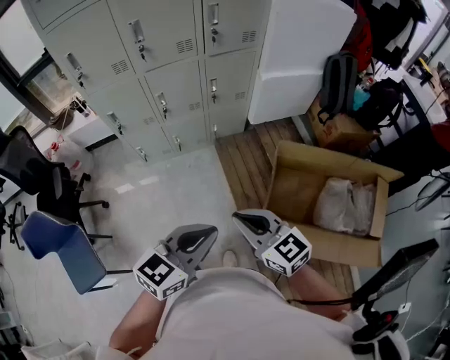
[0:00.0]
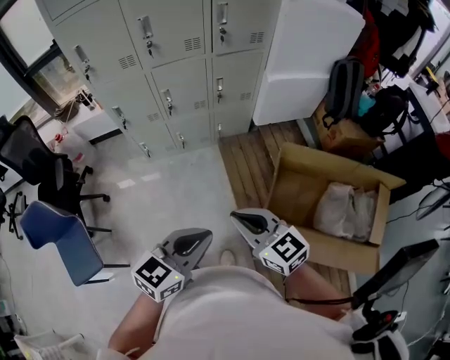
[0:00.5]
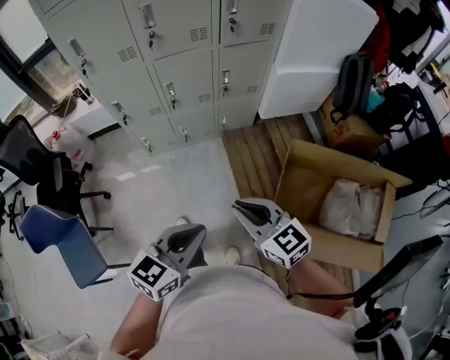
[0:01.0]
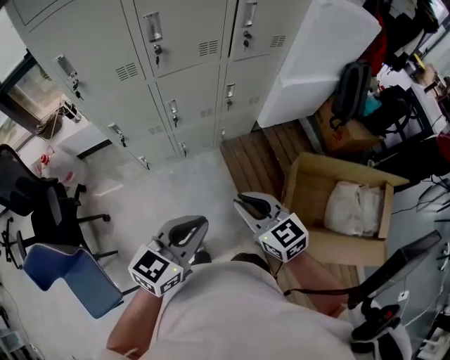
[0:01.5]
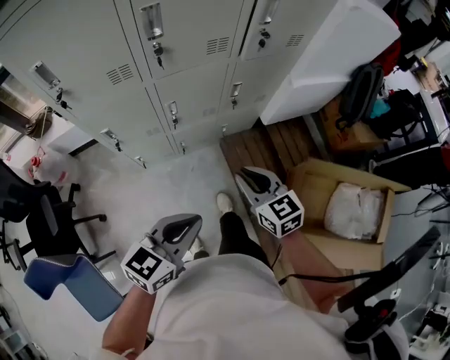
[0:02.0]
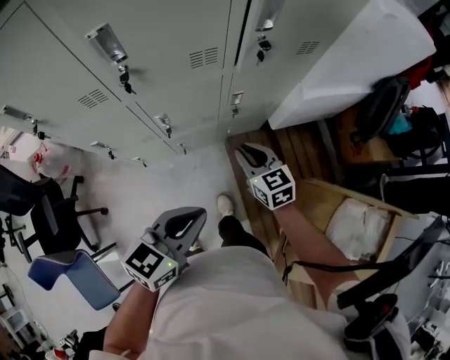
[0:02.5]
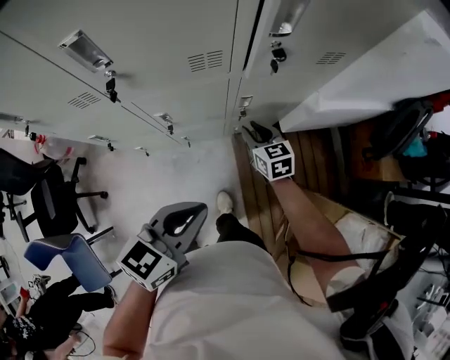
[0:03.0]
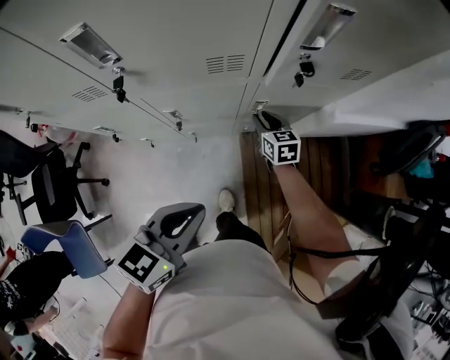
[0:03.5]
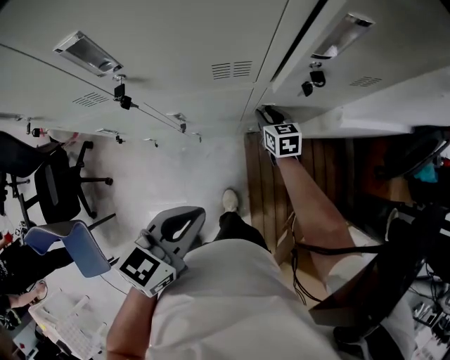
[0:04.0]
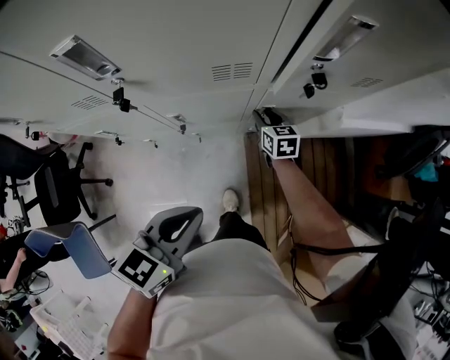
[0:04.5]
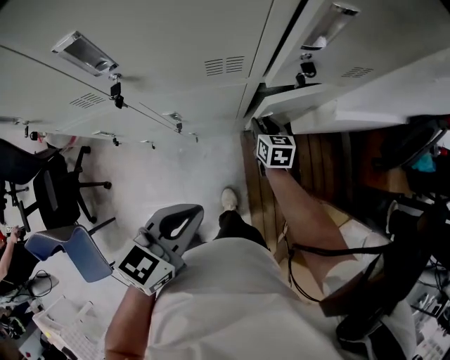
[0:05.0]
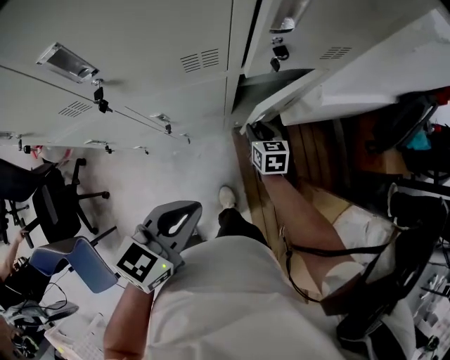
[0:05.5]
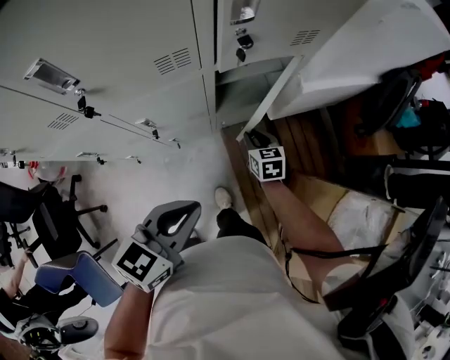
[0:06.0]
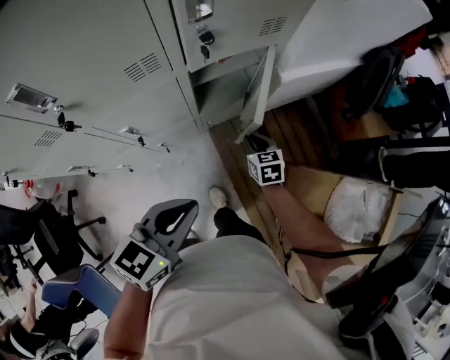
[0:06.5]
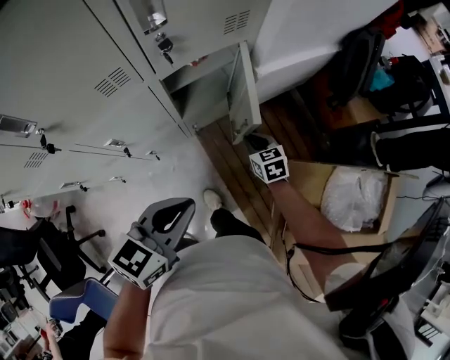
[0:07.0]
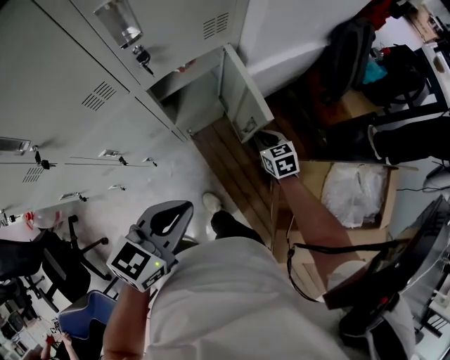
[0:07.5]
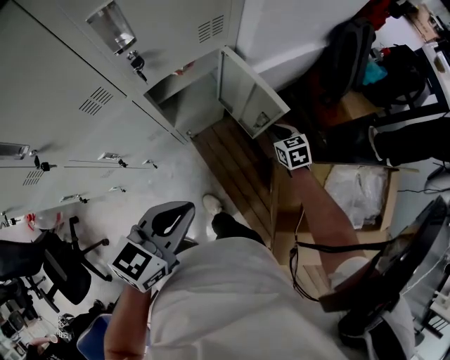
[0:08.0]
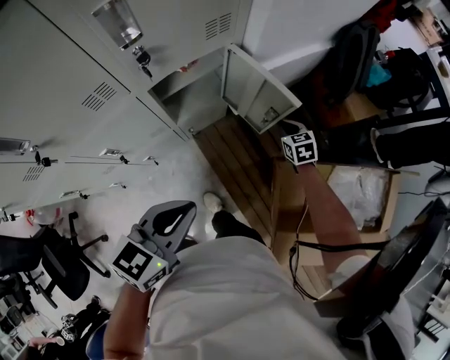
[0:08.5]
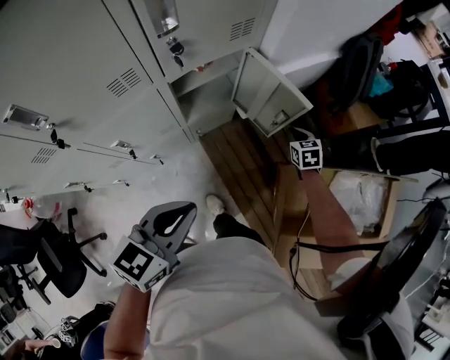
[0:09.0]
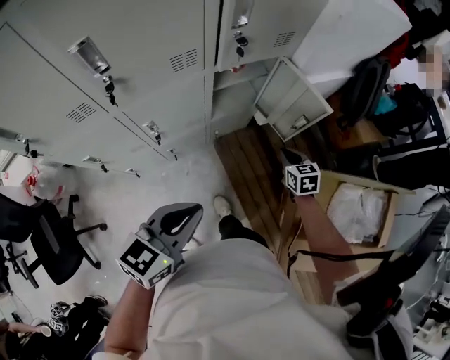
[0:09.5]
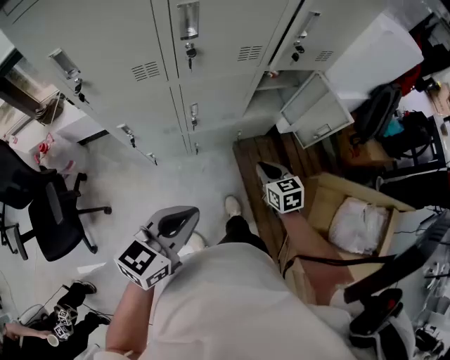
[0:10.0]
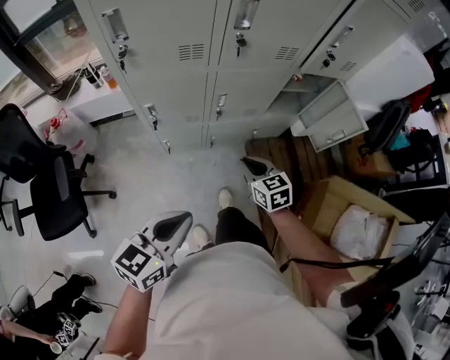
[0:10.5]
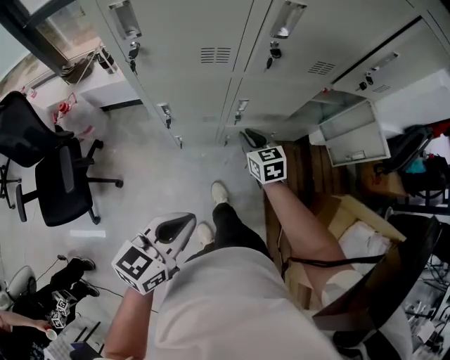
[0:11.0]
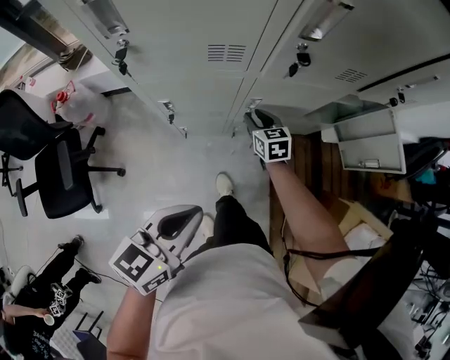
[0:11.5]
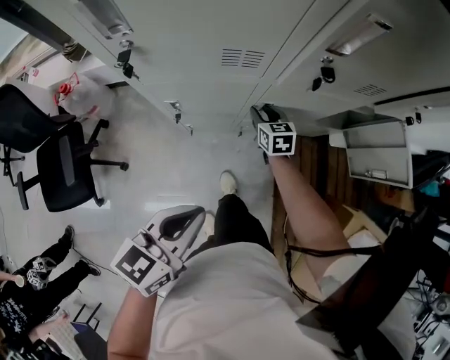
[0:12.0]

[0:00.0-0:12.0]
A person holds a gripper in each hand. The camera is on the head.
0:00.0 to 0:02.0: The two grippers go roughly 35 cm forward and to the left.
0:02.0 to 0:04.0: The left gripper heads forward, covering about 25 cm. Meanwhile the right gripper travels forward and downward by approximately 50 cm.
0:04.0 to 0:06.0: The right gripper moves backward and to the right, roughly 15 cm.
0:06.0 to 0:08.0: The left gripper is displaced to the right by approximately 10 cm. The right gripper is displaced to the right by roughly 25 cm.
0:08.0 to 0:10.0: The grippers both shift backward and to the left by roughly 35 cm.
0:10.0 to 0:12.0: The left gripper heads to the left and forward, covering some 15 cm, and swivels roughly 20 degrees. The right gripper goes some 35 cm to the left and forward, and opens up.

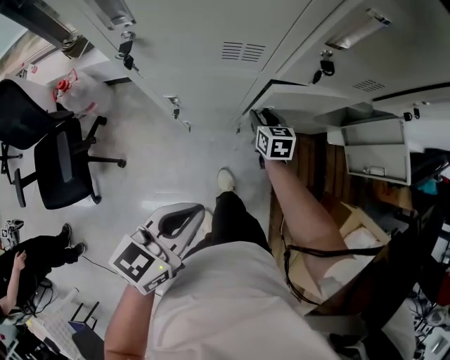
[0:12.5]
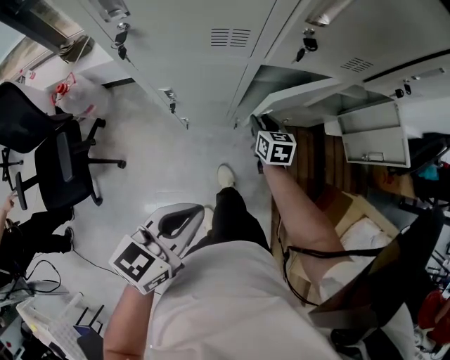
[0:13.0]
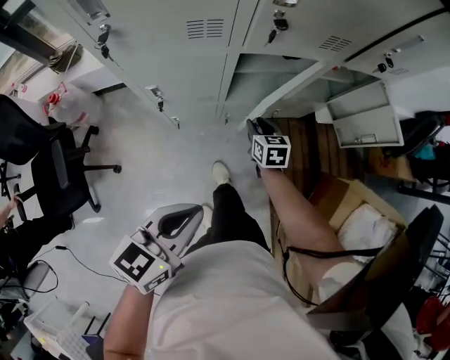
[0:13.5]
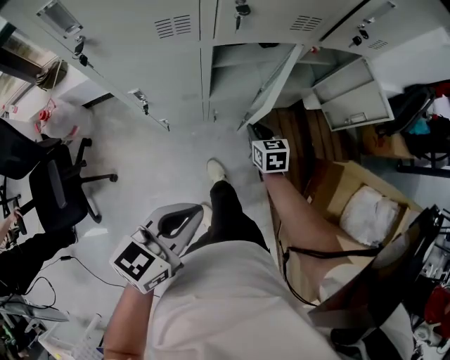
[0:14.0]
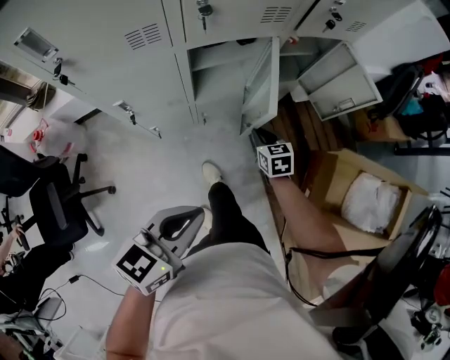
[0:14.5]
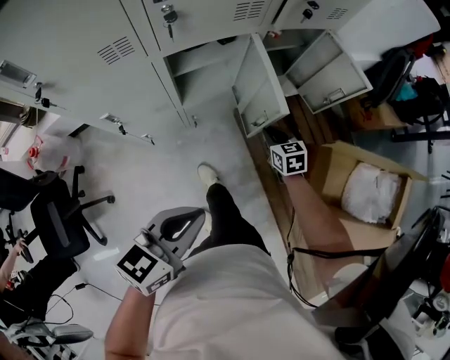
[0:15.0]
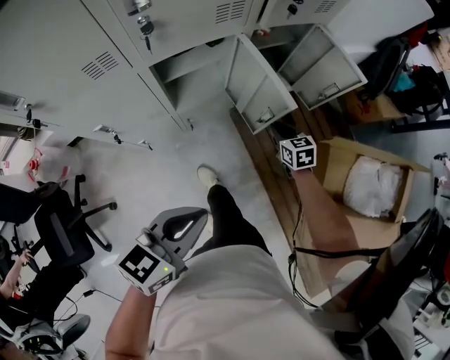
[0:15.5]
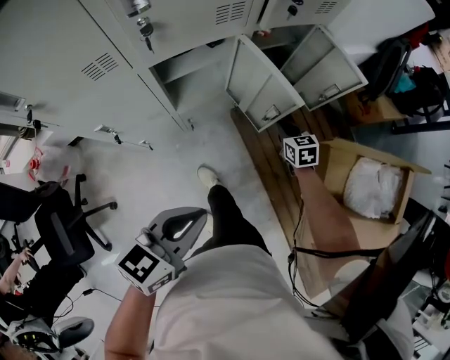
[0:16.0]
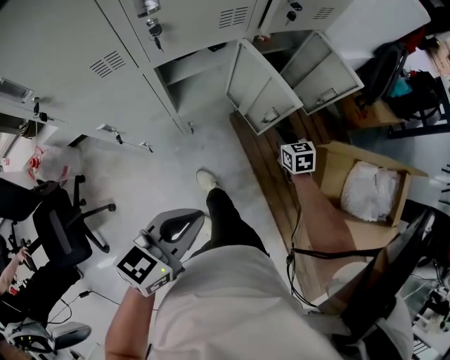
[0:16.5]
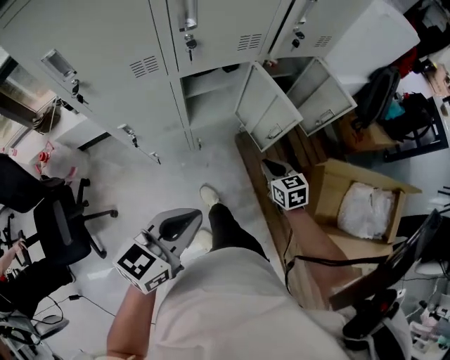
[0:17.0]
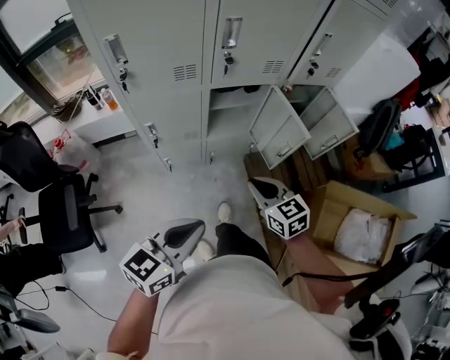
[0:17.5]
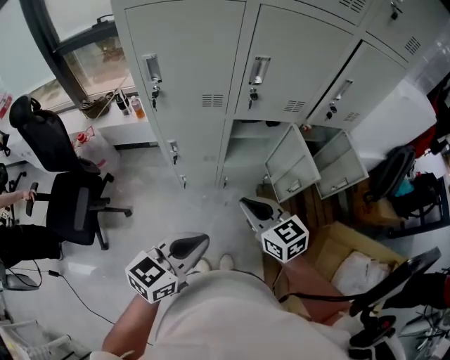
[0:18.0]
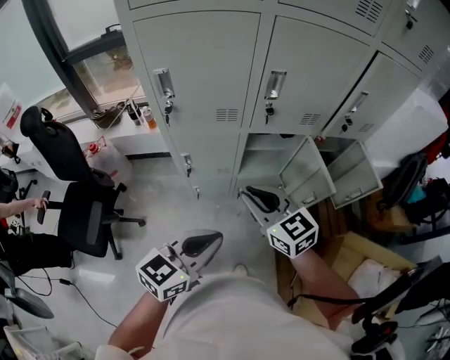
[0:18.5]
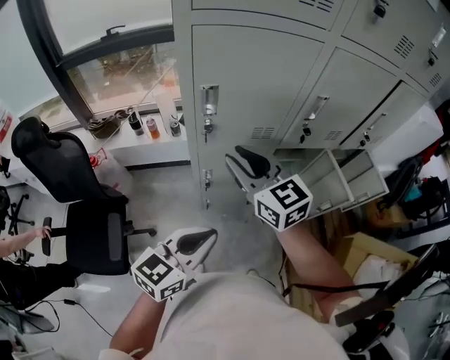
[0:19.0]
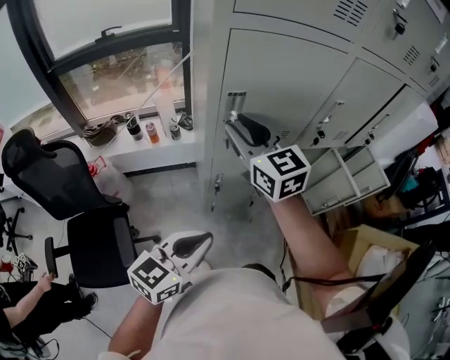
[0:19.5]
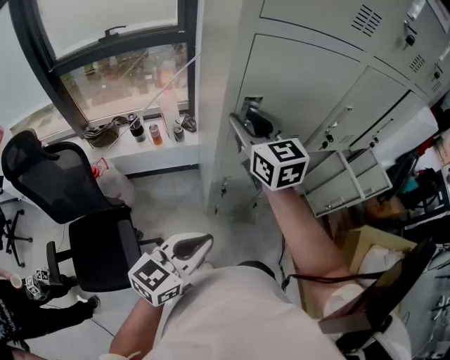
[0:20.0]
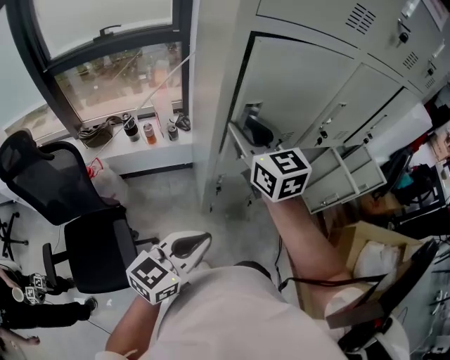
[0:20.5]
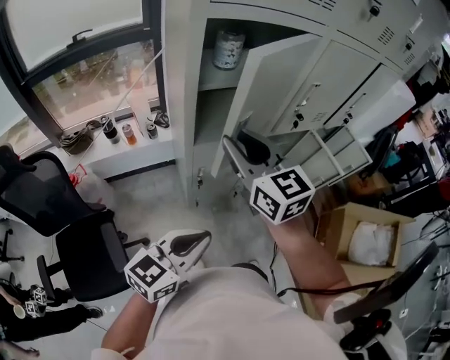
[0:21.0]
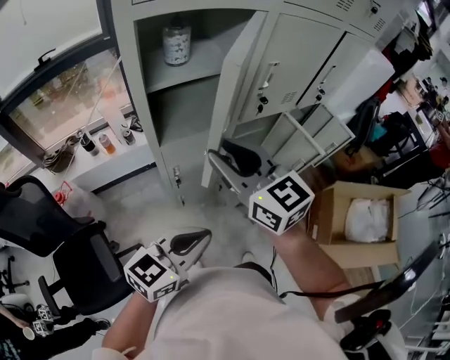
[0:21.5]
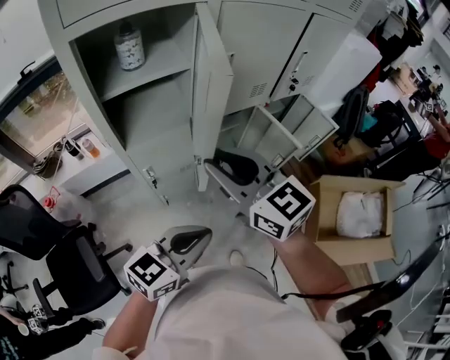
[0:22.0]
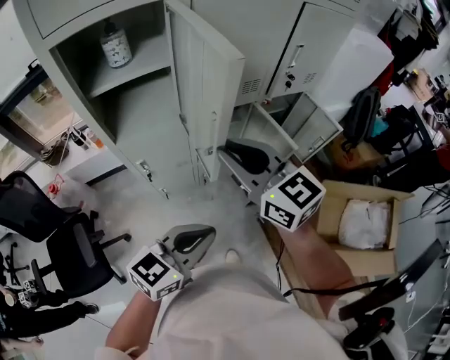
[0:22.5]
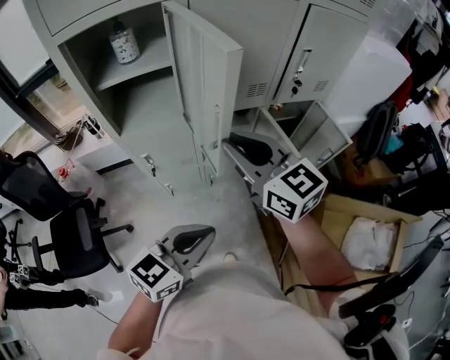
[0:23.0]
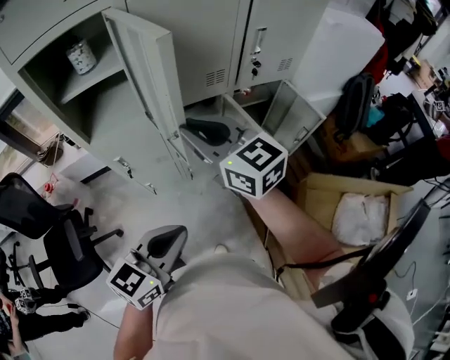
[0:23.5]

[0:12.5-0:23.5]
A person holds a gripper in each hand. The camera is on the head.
0:12.5 to 0:14.5: The right gripper goes about 25 cm to the right and backward. Meanwhile the left gripper is displaced to the right and backward by some 15 cm.
0:14.5 to 0:16.0: The left gripper ends up about 5 cm from where it was. Meanwhile the right gripper heads to the right and forward, covering about 15 cm.
0:16.0 to 0:18.0: The left gripper changes place by some 15 cm, and changes its angle by approximately 20 degrees. Meanwhile the right gripper moves approximately 40 cm, and turns by roughly 40 degrees.
0:18.0 to 0:20.0: The left gripper shifts roughly 30 cm to the left. The right gripper heads to the left, forward and upward, covering roughly 50 cm, swivels some 30 degrees, and opens.
0:20.0 to 0:21.5: The left gripper goes about 10 cm to the right. The right gripper goes approximately 20 cm to the right and backward.
0:21.5 to 0:23.5: Both grippers move to the right, approximately 25 cm.

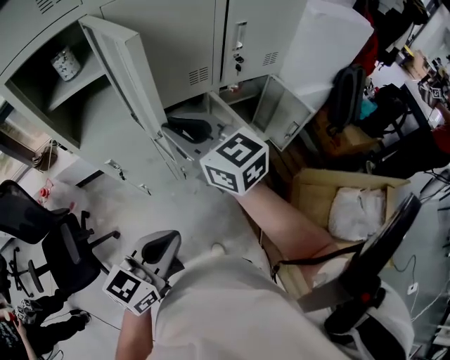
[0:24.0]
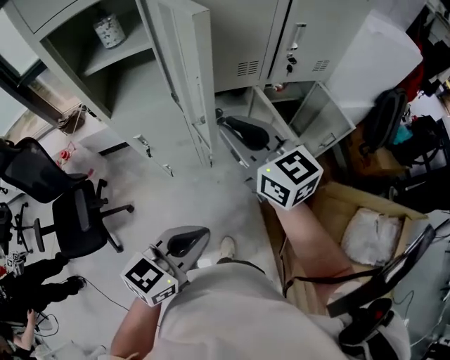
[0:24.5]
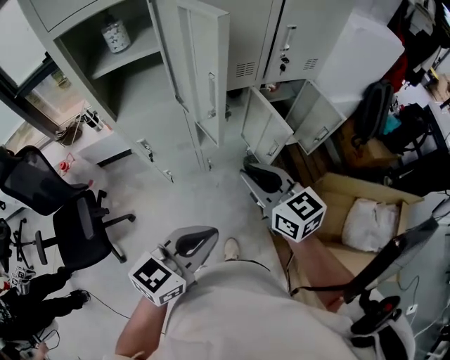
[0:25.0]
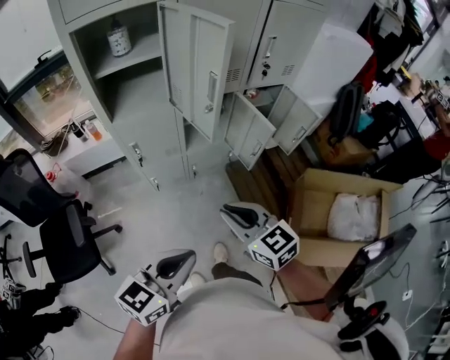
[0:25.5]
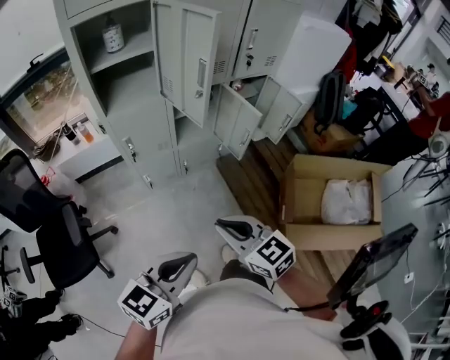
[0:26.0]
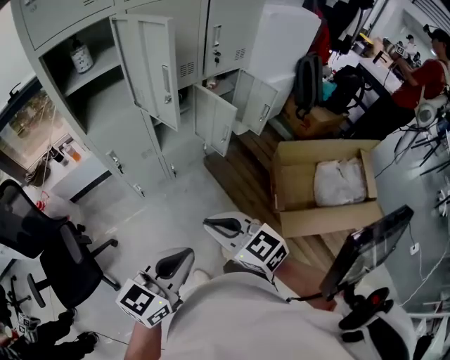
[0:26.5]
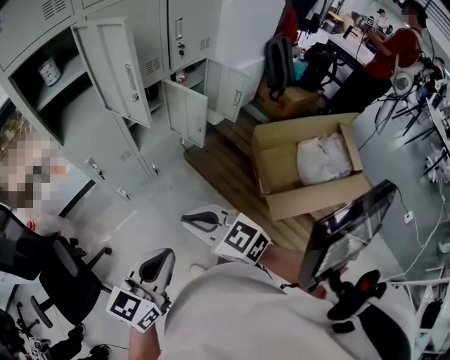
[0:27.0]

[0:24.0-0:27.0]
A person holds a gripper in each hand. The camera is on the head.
0:24.0 to 0:25.5: The right gripper is displaced backward and downward by about 30 cm. Meanwhile the left gripper goes some 15 cm backward and to the left.
0:25.5 to 0:27.0: The left gripper moves backward, about 5 cm. Meanwhile the right gripper goes some 10 cm backward.
